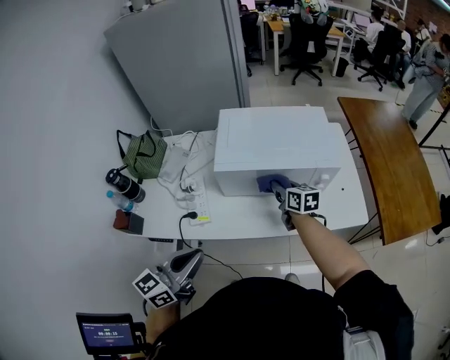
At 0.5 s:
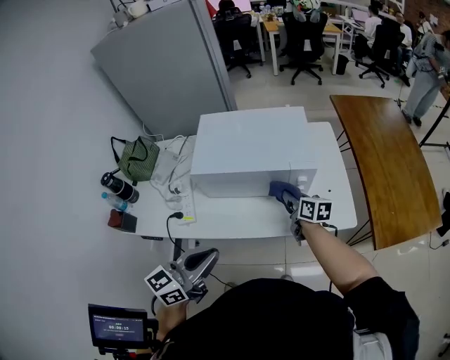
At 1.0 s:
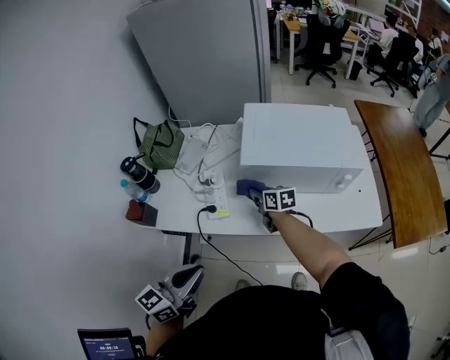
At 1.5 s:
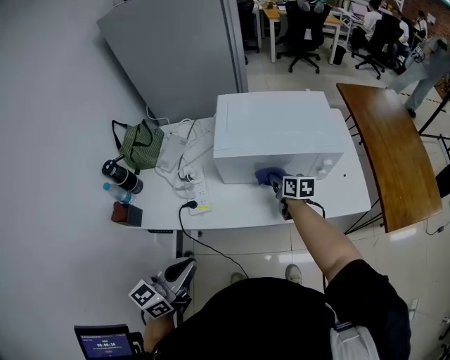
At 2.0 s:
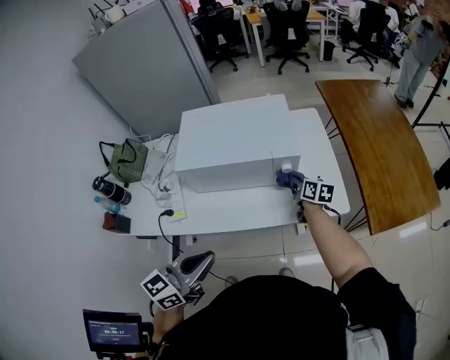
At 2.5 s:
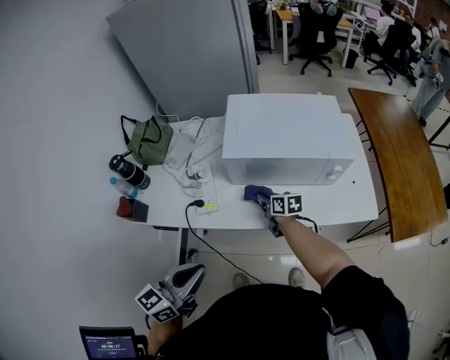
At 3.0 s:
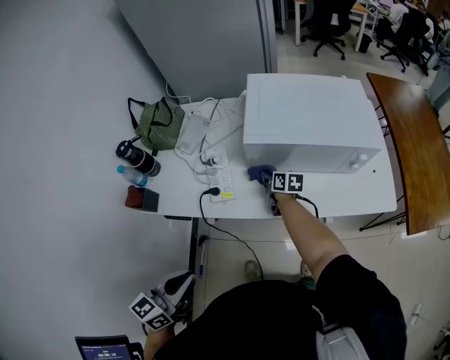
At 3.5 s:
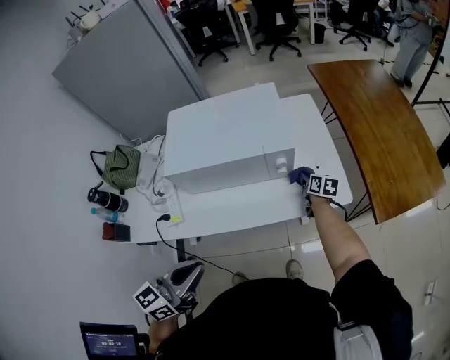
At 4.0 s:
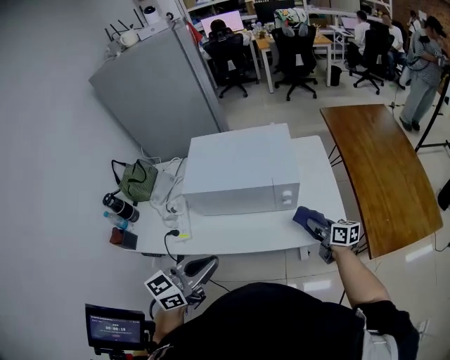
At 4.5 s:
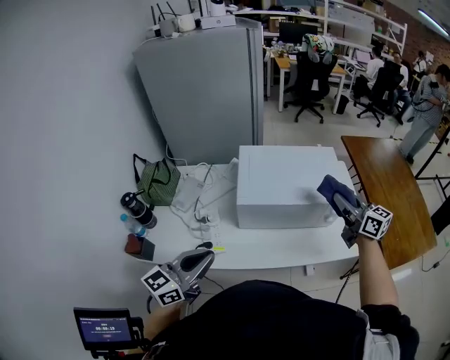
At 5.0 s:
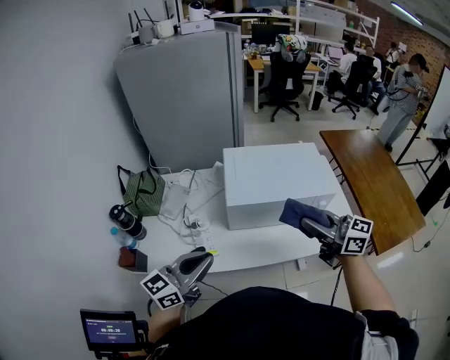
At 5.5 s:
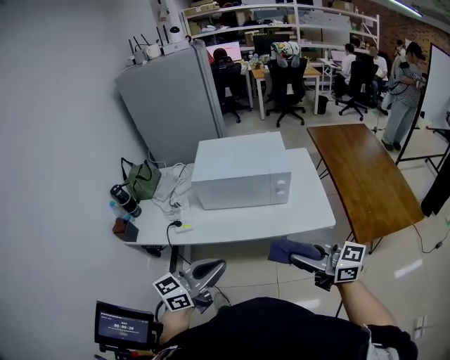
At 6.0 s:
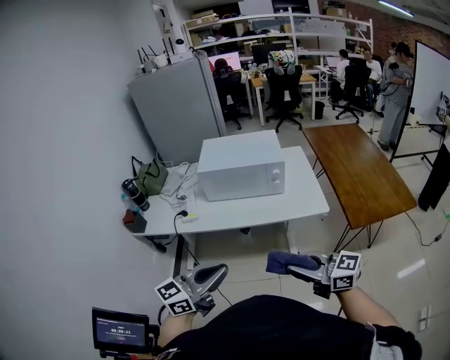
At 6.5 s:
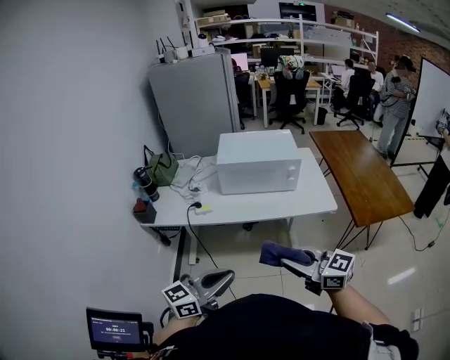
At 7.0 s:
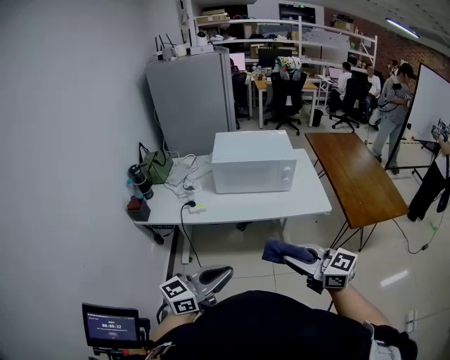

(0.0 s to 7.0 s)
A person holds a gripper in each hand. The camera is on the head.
0.0 s - 2.0 s: The right gripper swings left and right, approximately 40 cm each way, with 2 reversals. The left gripper goes left and right, roughly 25 cm each way, reversing 2 times.
2.0 s - 3.5 s: The right gripper moves downward, about 10 cm, and moves approximately 35 cm to the left and comes back, while the left gripper moves roughly 25 cm to the left and comes back.
3.5 s - 5.0 s: The left gripper travels to the left by approximately 20 cm. The right gripper is displaced upward, to the left and backward by some 50 cm, and points its fingers approximately 40 degrees further upward.
5.0 s - 7.0 s: Both grippers travel together backward, about 35 cm.

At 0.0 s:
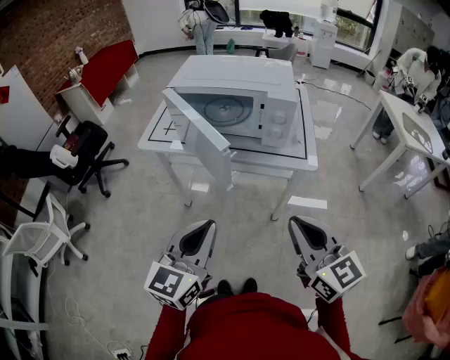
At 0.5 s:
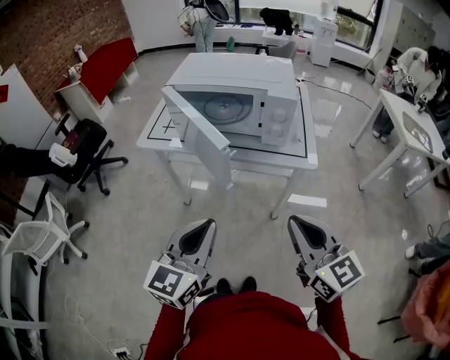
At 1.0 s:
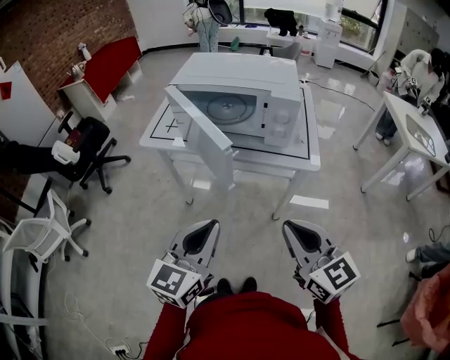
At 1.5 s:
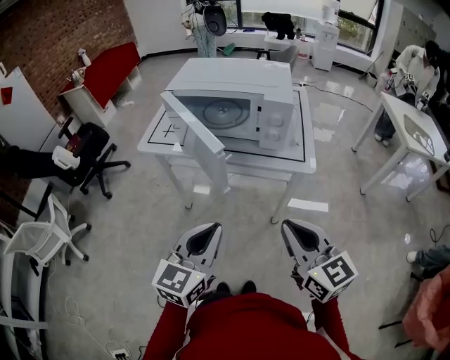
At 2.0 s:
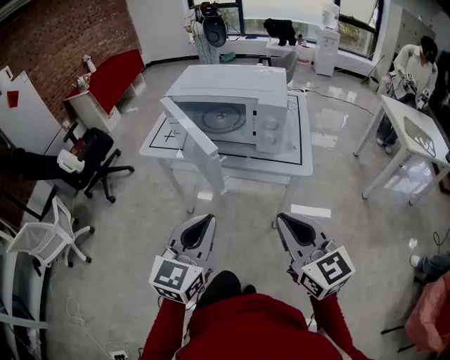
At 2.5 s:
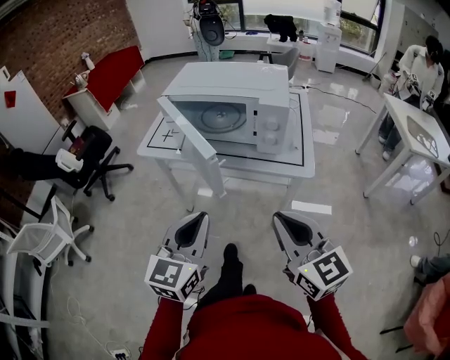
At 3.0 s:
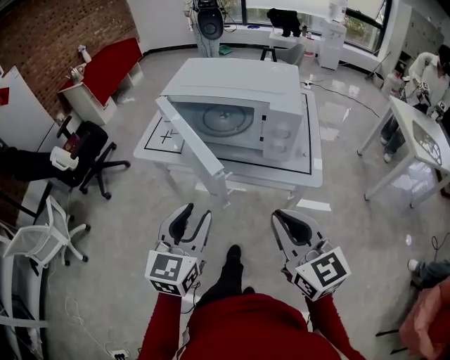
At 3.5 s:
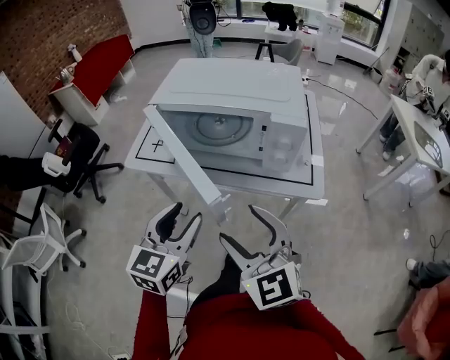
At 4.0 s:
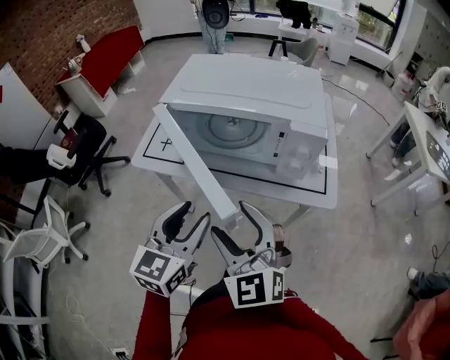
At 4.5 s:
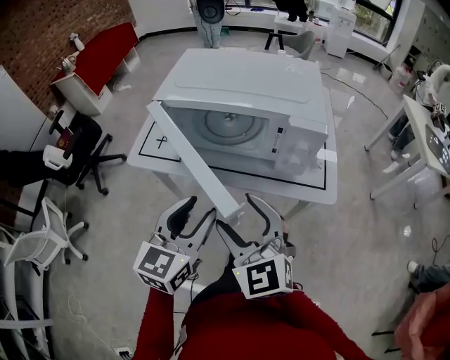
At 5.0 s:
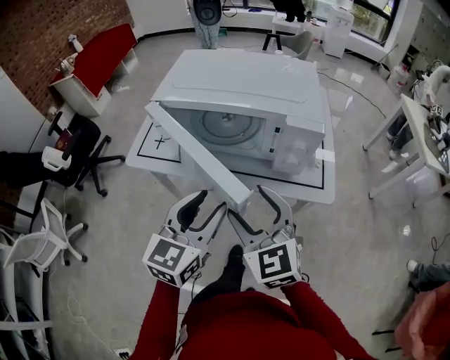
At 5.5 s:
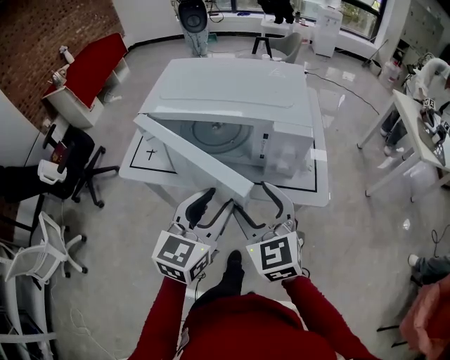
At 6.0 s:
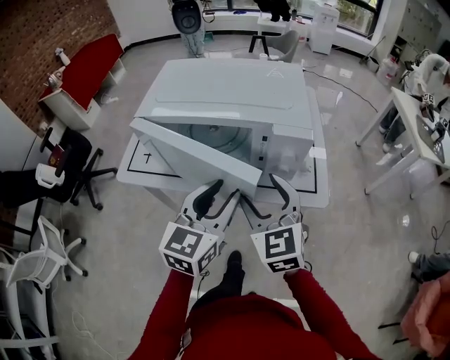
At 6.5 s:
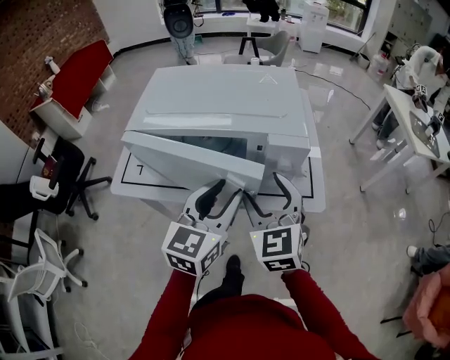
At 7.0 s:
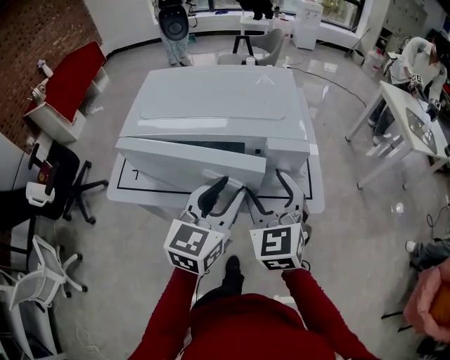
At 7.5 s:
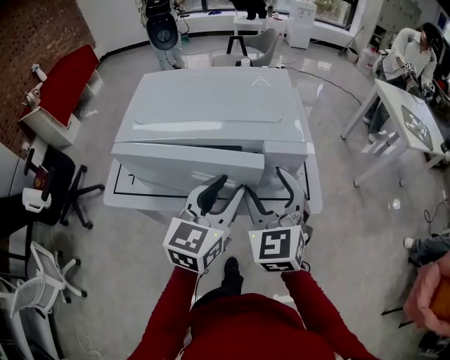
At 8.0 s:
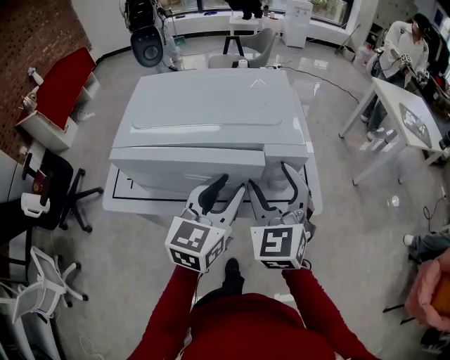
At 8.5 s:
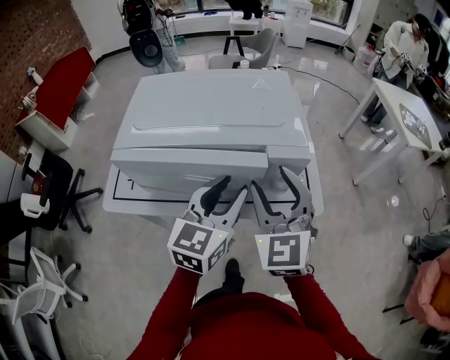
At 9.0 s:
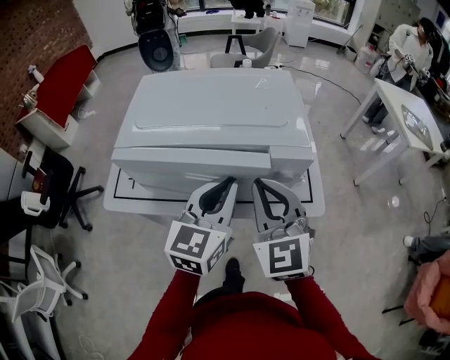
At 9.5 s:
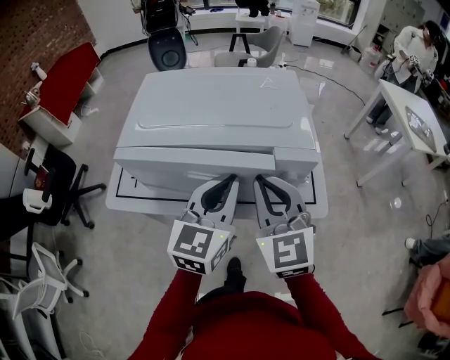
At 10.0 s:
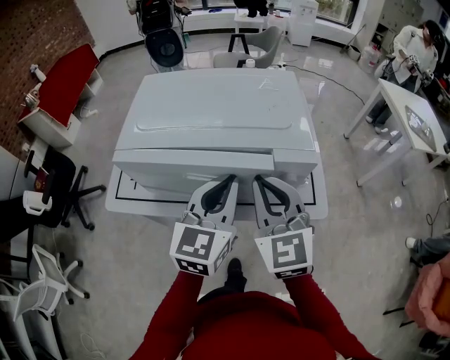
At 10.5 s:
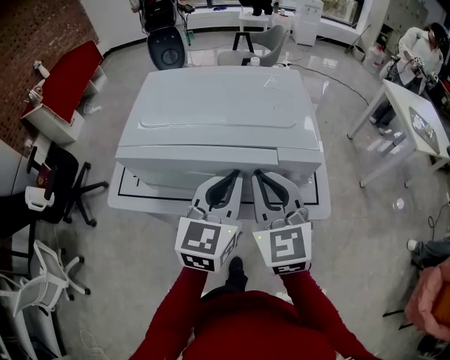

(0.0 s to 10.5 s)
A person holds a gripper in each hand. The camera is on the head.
0.0 s - 2.0 s: The grippers make only small movements.
2.0 s - 4.0 s: The left gripper shifts roughly 15 cm forward, and opens up. Meanwhile the right gripper heads forward and to the left, covering about 20 cm, swivels some 30 degrees, and opens its fingers.
4.0 s - 6.5 s: The grippers both shift forward and to the right by roughly 15 cm. The right gripper rotates approximately 20 degrees.
6.5 s - 8.5 s: The right gripper changes place by about 5 cm.
8.5 s - 10.5 s: The right gripper closes up. Meanwhile the left gripper closes its fingers.

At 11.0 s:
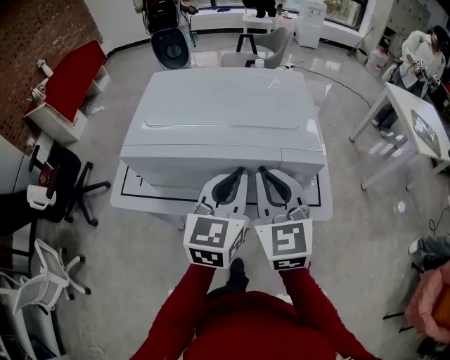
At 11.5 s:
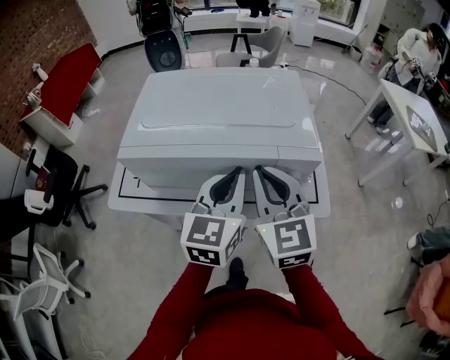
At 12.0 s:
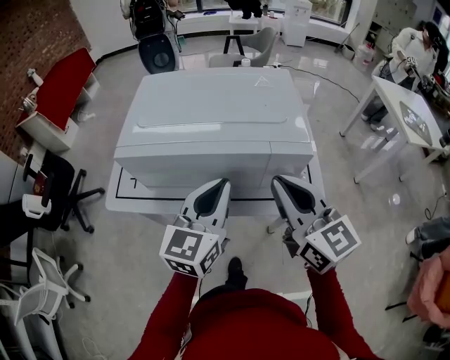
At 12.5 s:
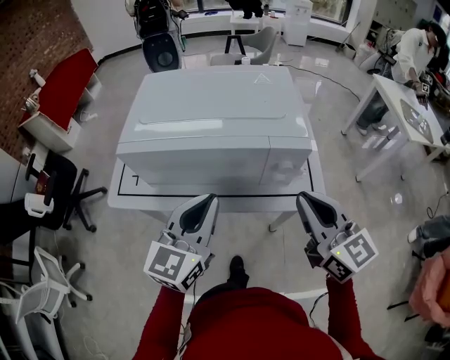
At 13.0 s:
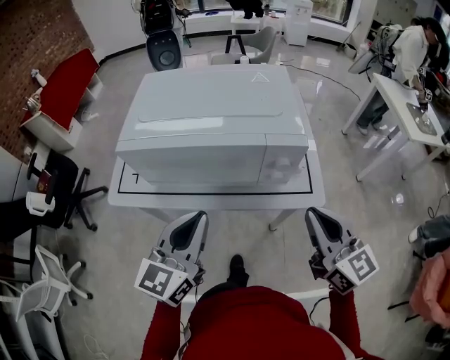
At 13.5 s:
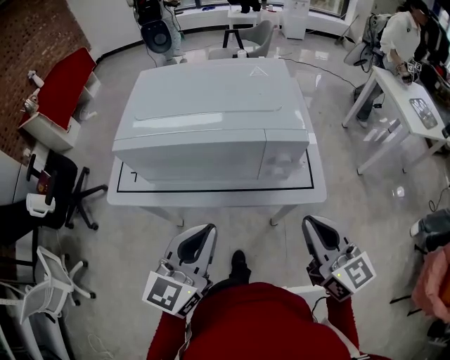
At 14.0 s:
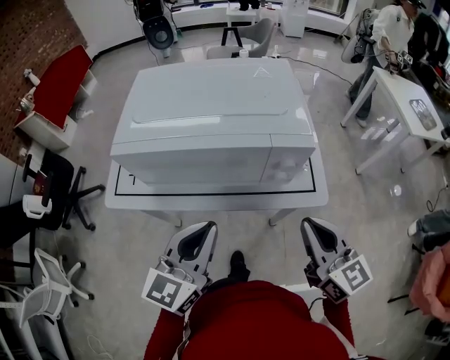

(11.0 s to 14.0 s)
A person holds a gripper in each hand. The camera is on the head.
11.0 s - 12.5 s: The right gripper is displaced to the right and backward by some 15 cm, and turns by about 20 degrees, while the left gripper heads backward, covering approximately 10 cm.
12.5 s - 14.0 s: The left gripper changes place by about 5 cm. Meanwhile the right gripper ends up approximately 5 cm from where it was.

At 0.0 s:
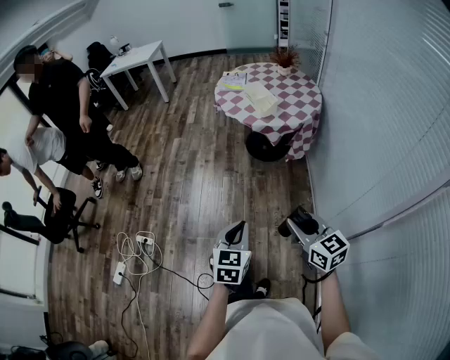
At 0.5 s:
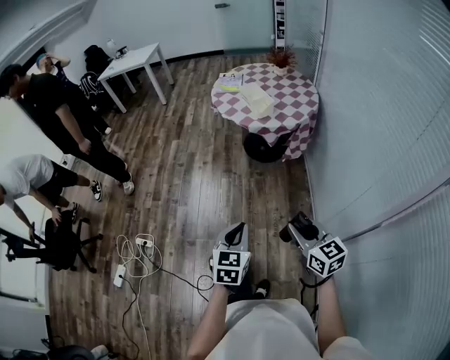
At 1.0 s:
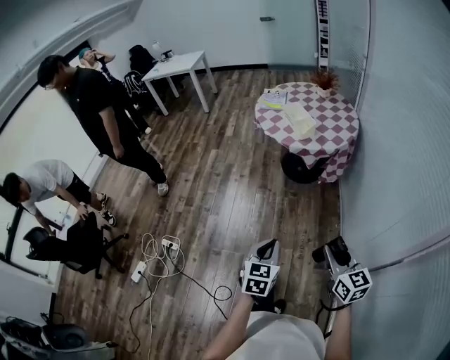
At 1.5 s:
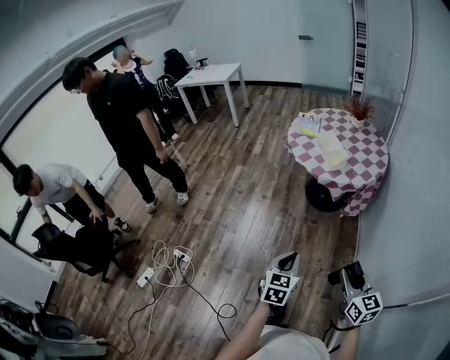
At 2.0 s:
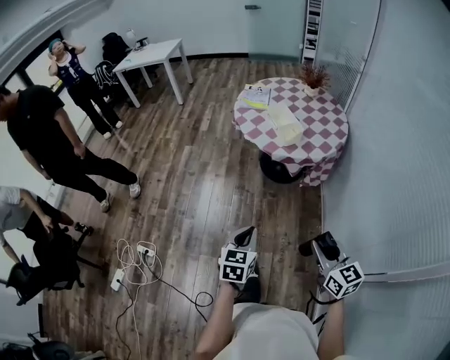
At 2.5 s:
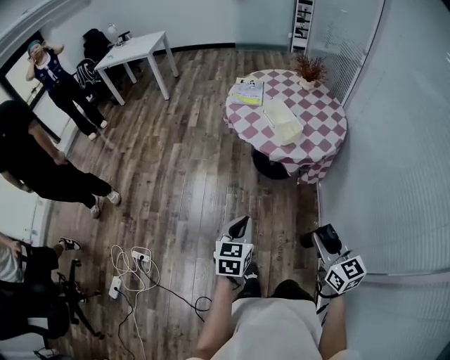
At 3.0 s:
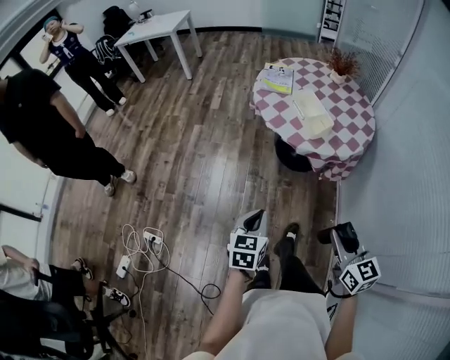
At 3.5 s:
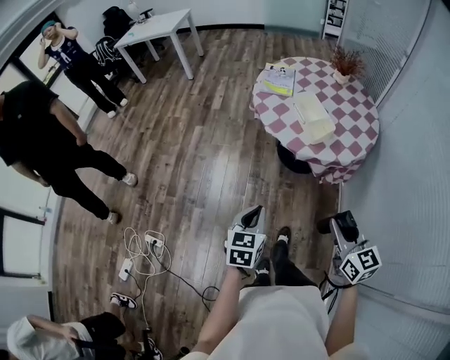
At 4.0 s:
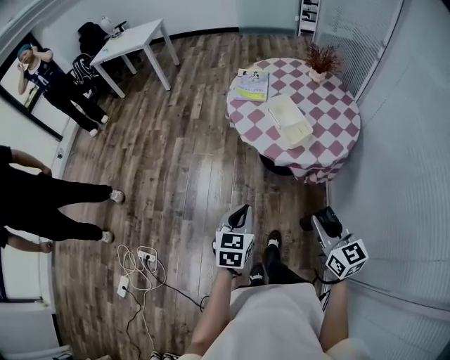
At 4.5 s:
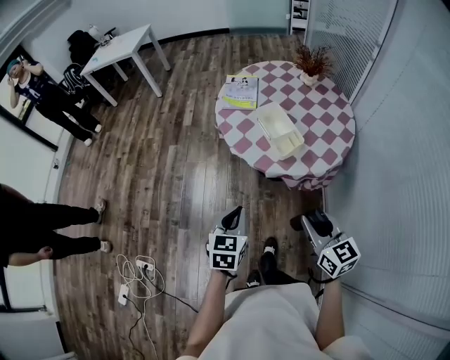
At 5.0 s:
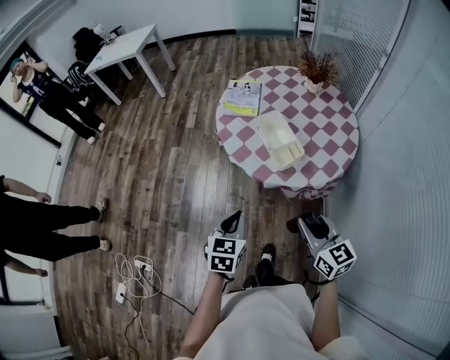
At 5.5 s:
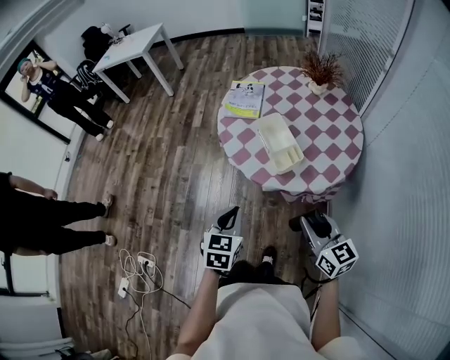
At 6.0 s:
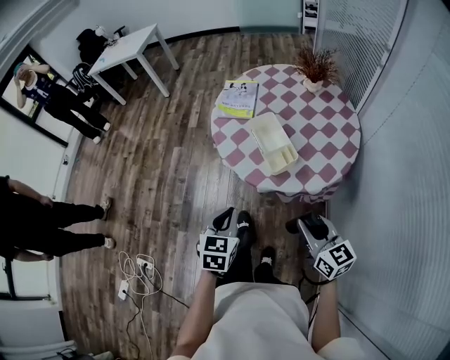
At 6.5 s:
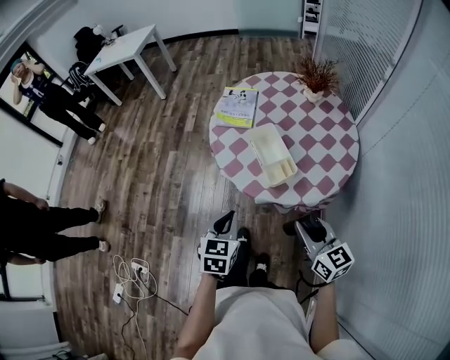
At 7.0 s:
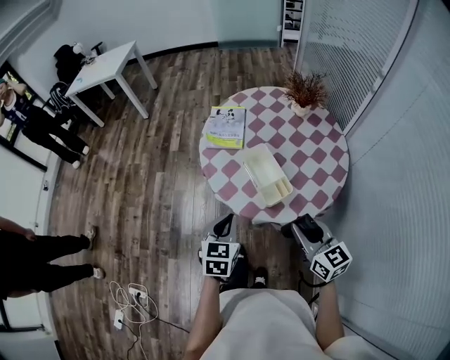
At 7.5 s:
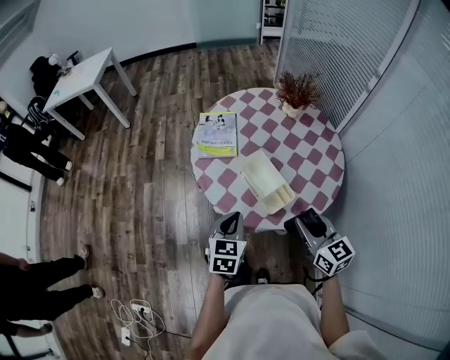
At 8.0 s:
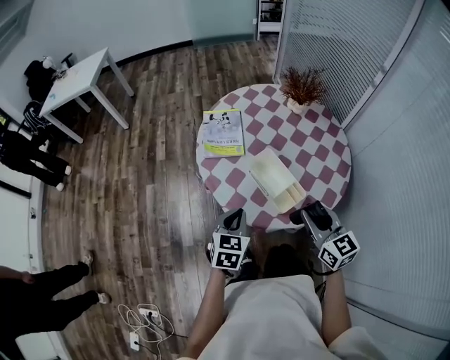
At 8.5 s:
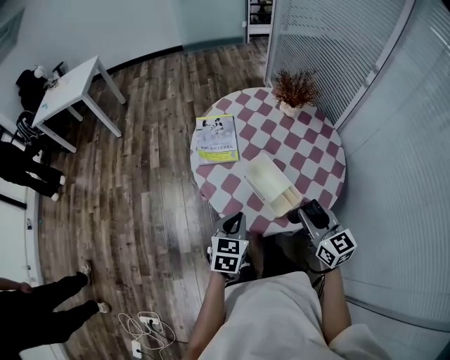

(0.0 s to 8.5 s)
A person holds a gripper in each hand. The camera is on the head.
0.0 s - 2.0 s: Both grippers travel together forward, about 15 cm.
2.0 s - 4.0 s: The two grippers go roughly 20 cm forward.
4.0 s - 6.5 s: Both grippers travel together forward and to the right, approximately 20 cm.
6.5 s - 8.5 s: Both grippers move forward, about 15 cm.
